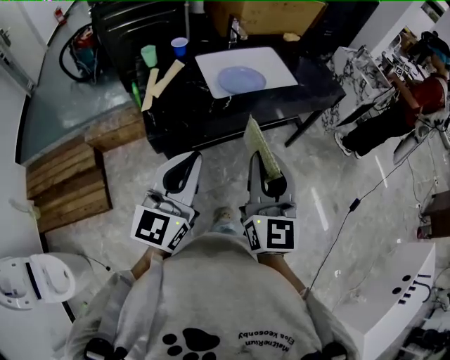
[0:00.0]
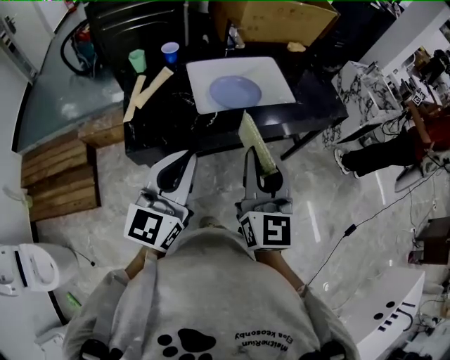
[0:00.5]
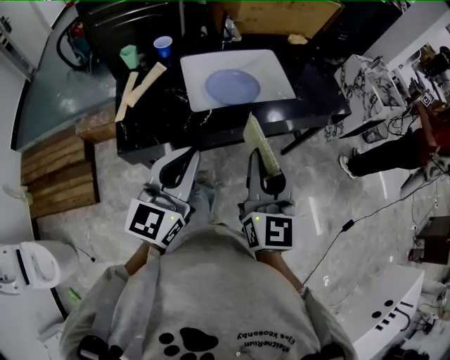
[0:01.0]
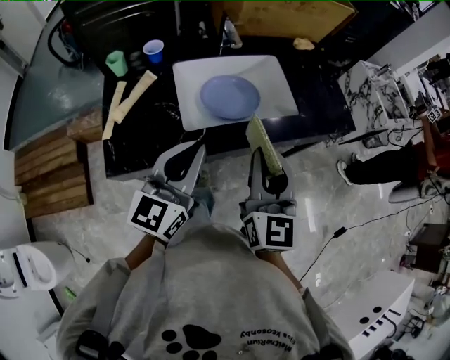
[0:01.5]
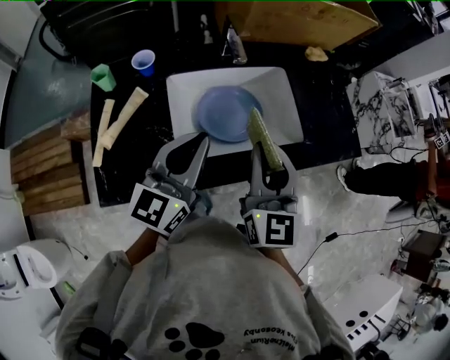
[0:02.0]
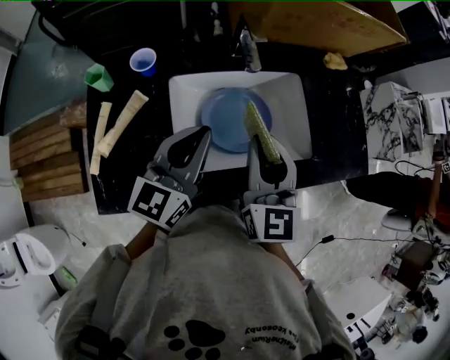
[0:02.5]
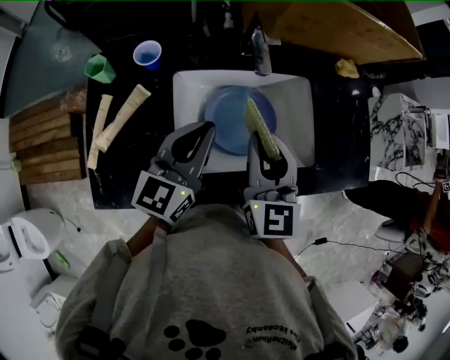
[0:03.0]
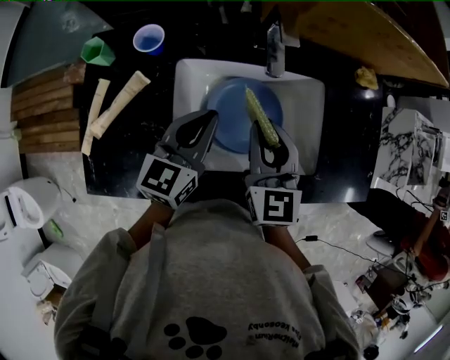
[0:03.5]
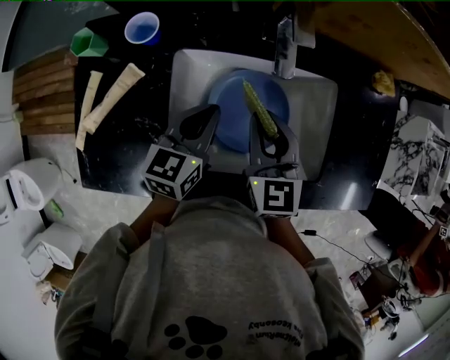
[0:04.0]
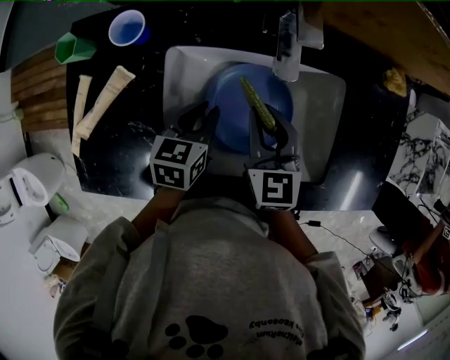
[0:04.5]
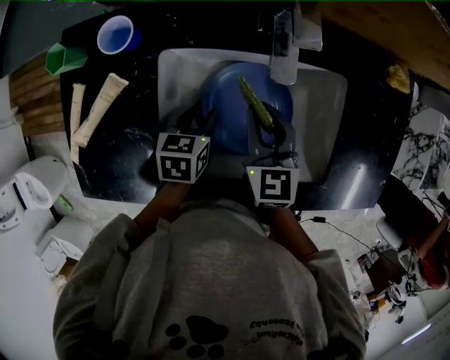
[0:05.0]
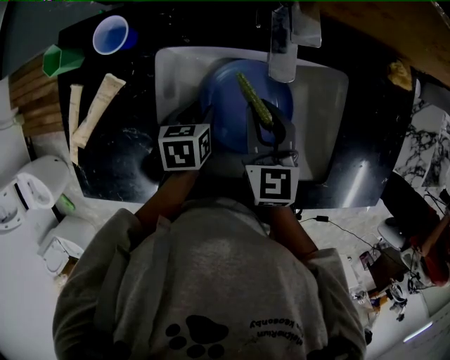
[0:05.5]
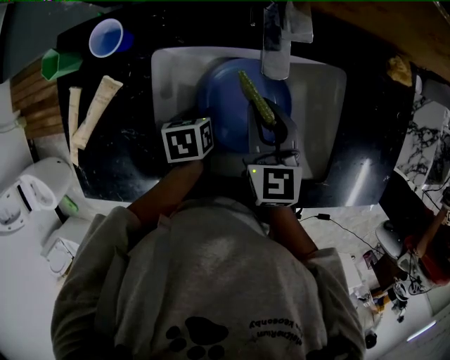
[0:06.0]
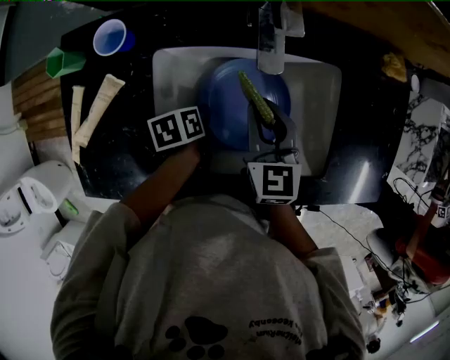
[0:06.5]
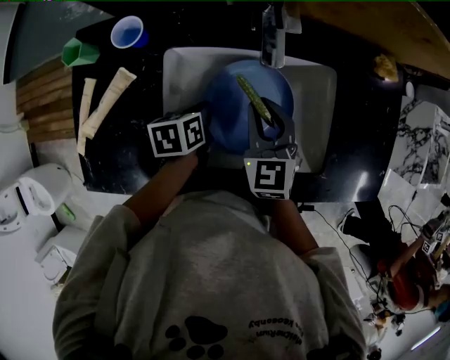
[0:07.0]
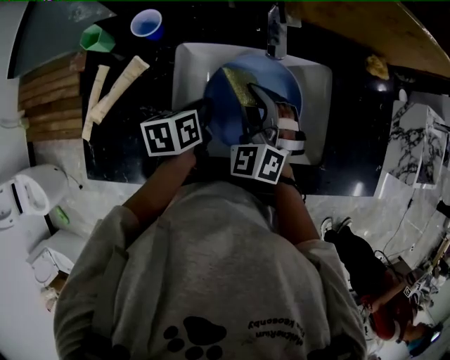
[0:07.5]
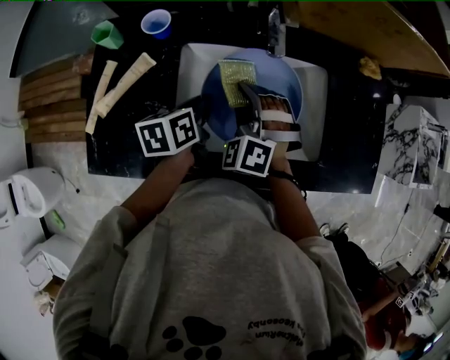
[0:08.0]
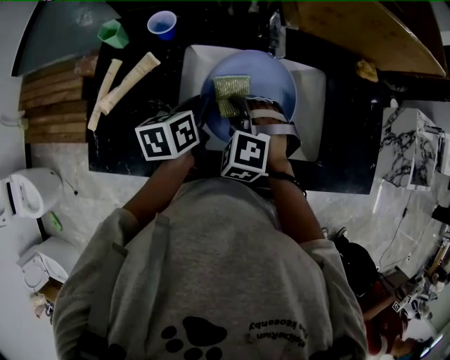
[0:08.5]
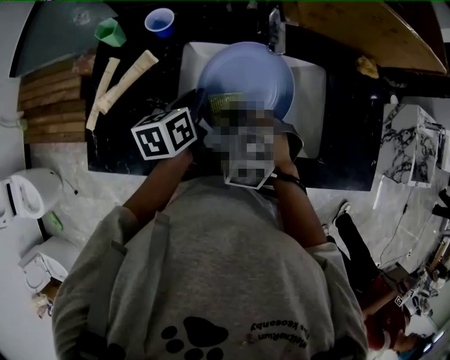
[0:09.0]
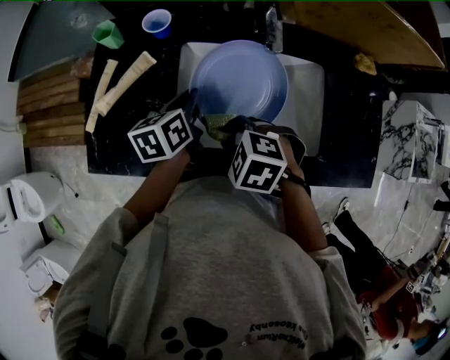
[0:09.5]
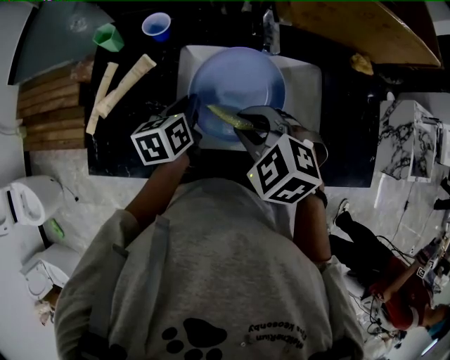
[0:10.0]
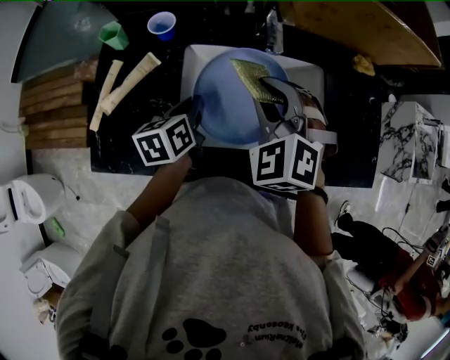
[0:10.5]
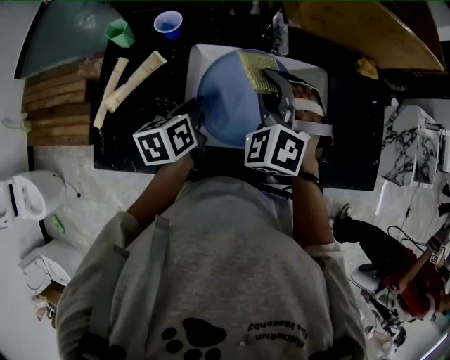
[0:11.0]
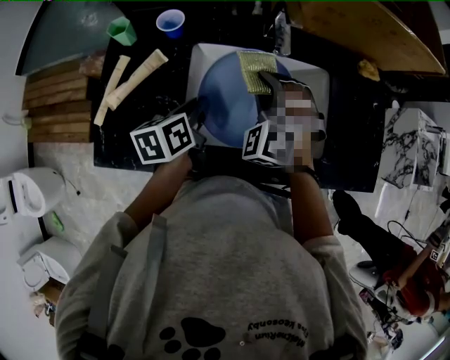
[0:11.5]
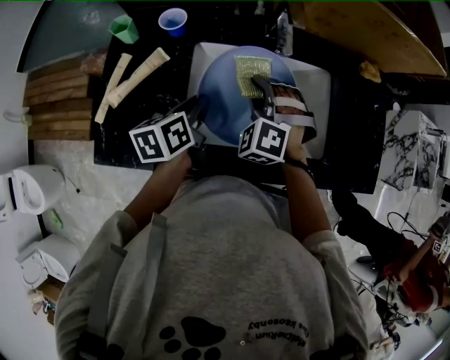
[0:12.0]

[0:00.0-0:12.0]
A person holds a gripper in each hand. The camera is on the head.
0:00.0 to 0:02.0: The two grippers go some 40 cm forward.
0:02.0 to 0:04.0: The right gripper shifts about 20 cm forward and downward, and swivels about 30 degrees. The left gripper travels downward and forward by approximately 25 cm, and turns by about 30 degrees.
0:04.0 to 0:06.0: The right gripper moves downward, some 5 cm. Meanwhile the left gripper is displaced downward by roughly 15 cm, tilts its fingers approximately 40 degrees downward, and opens up.
0:06.0 to 0:08.0: The right gripper shifts roughly 10 cm to the left and backward, and rolls counterclockwise, seen from behind, by about 70 degrees; the left gripper moves upward, about 15 cm, rotates roughly 30 degrees, and closes up.
0:08.0 to 0:10.0: The right gripper moves some 10 cm, and changes its angle by approximately 40 degrees.
0:10.0 to 0:12.0: The right gripper heads forward and downward, covering about 10 cm, and turns by roughly 40 degrees.

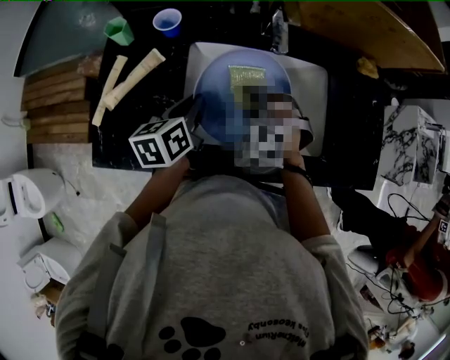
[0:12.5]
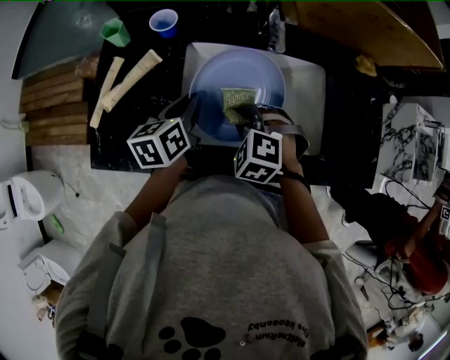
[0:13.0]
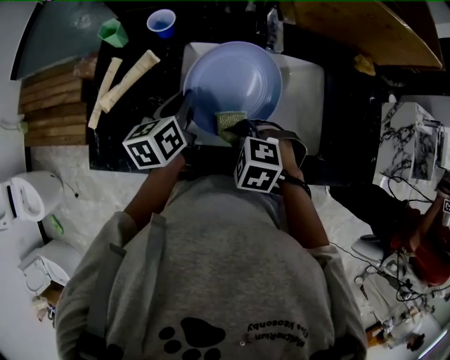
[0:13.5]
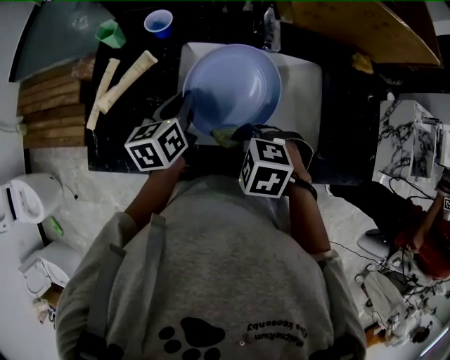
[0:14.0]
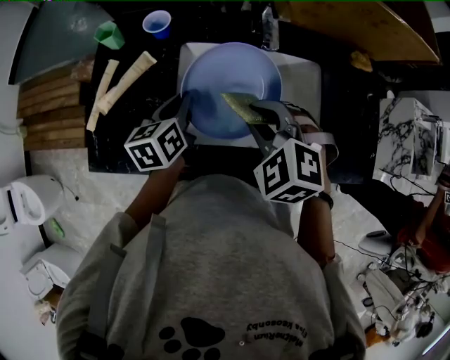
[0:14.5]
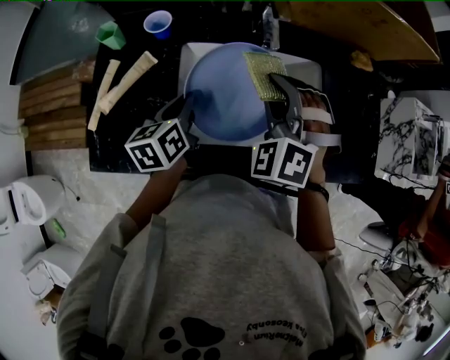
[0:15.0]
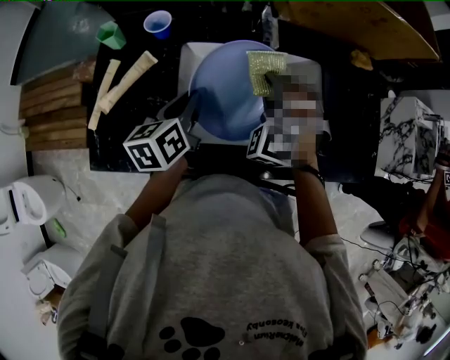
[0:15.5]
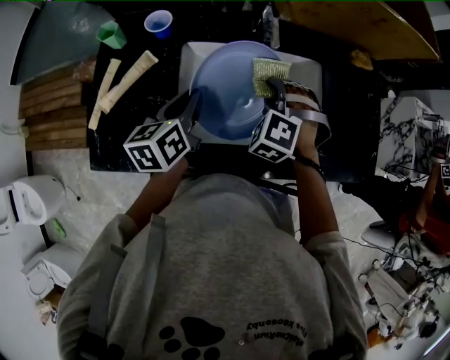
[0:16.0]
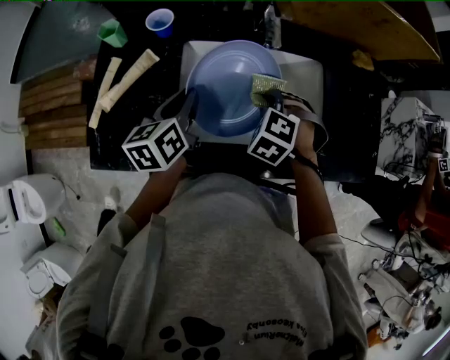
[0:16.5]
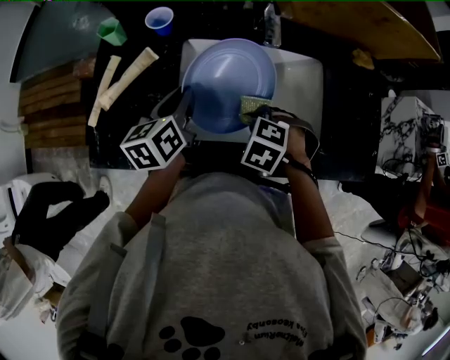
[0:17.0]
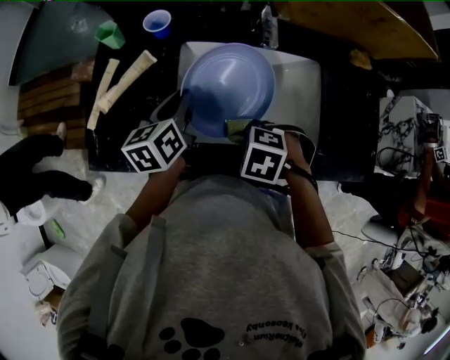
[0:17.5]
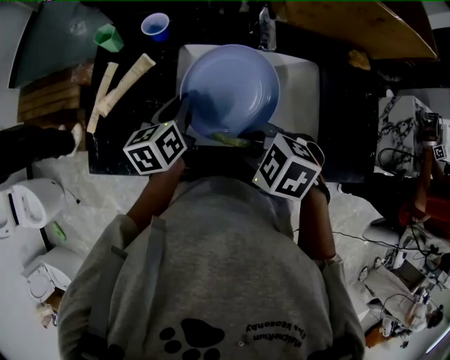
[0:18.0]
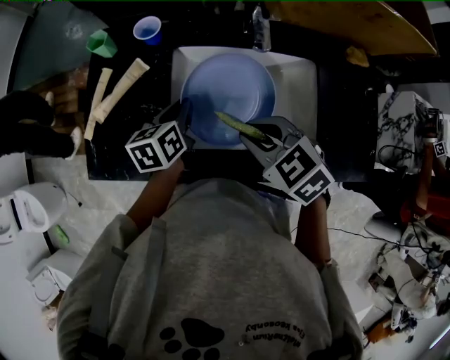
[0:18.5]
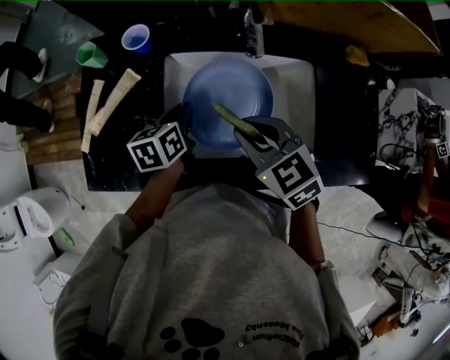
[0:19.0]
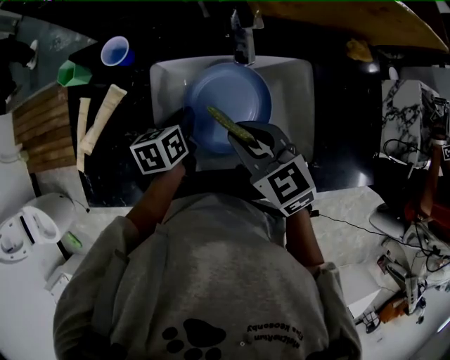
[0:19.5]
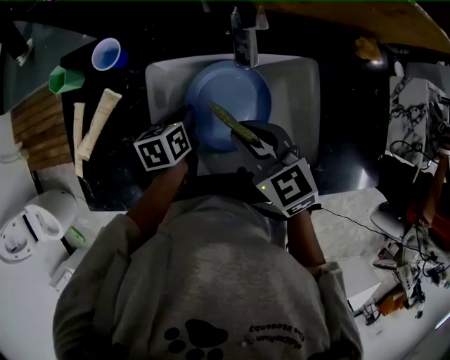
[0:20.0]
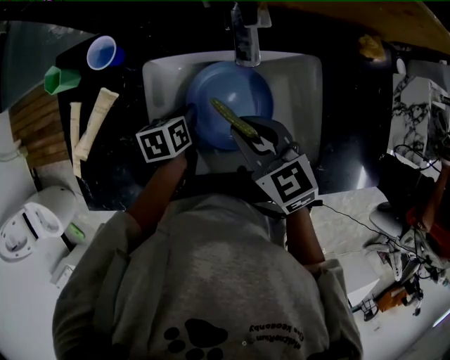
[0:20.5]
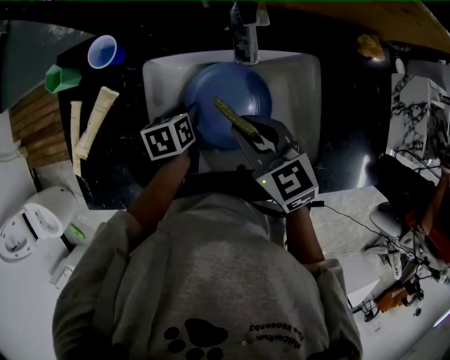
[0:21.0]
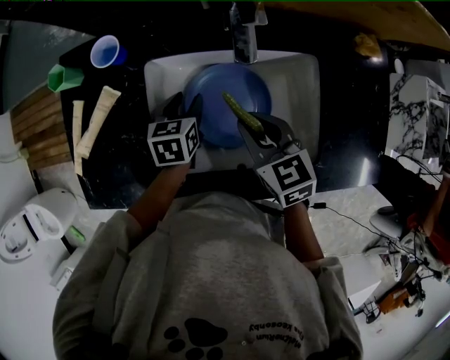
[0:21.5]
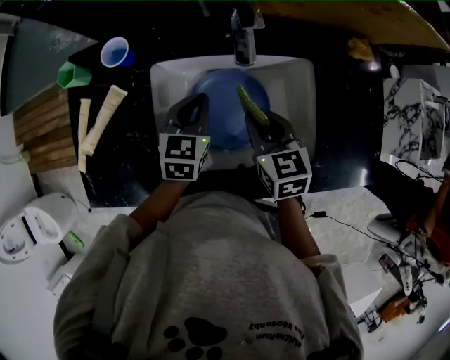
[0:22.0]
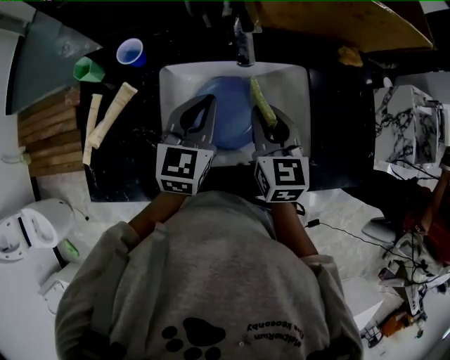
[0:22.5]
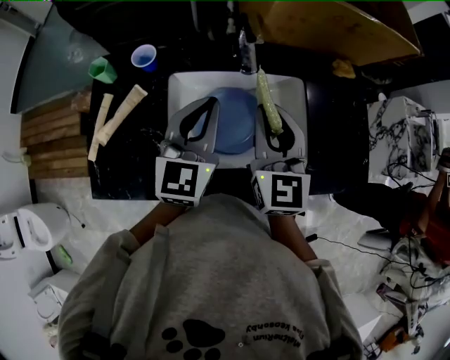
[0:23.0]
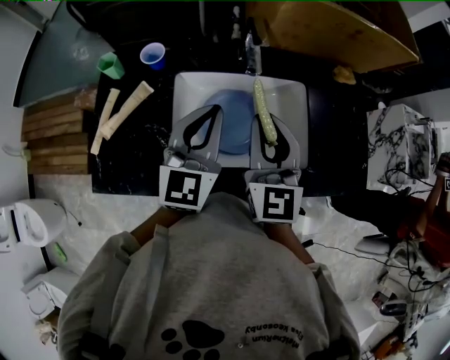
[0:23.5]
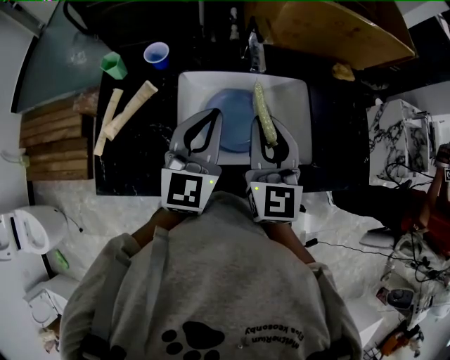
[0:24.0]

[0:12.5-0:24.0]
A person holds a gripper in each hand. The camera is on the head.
0:12.5 to 0:14.5: The right gripper shifts about 10 cm upward.
0:14.5 to 0:16.5: The right gripper moves downward, some 10 cm, and swivels approximately 20 degrees.
0:16.5 to 0:18.5: The right gripper is displaced upward by some 10 cm, and changes its angle by roughly 40 degrees.
0:18.5 to 0:20.0: The left gripper moves downward and to the right, roughly 10 cm; the right gripper is displaced forward by about 5 cm, and changes its angle by approximately 20 degrees.
0:20.0 to 0:22.0: The right gripper moves approximately 5 cm, and swivels approximately 20 degrees; the left gripper goes approximately 10 cm upward, swivels approximately 40 degrees, and opens, then closes once more.
0:22.0 to 0:24.0: The right gripper shifts about 15 cm upward, and angles its fingers upward, by approximately 30 degrees. The left gripper is displaced upward and backward by some 20 cm, and turns by approximately 30 degrees.

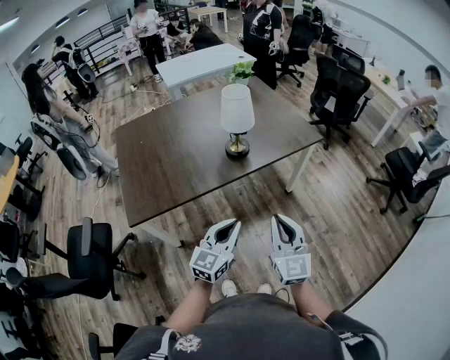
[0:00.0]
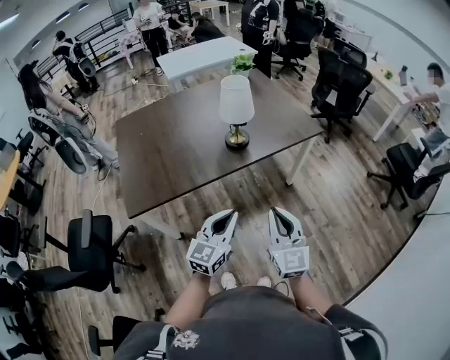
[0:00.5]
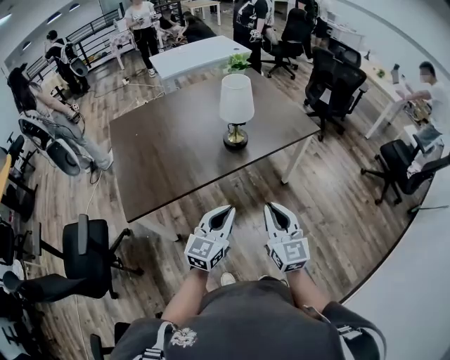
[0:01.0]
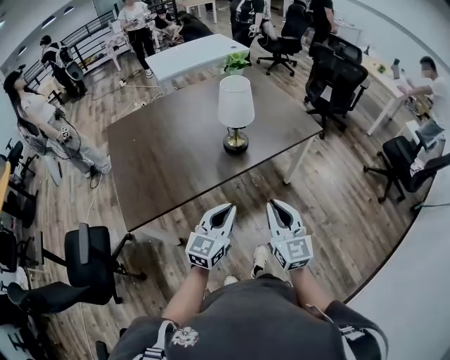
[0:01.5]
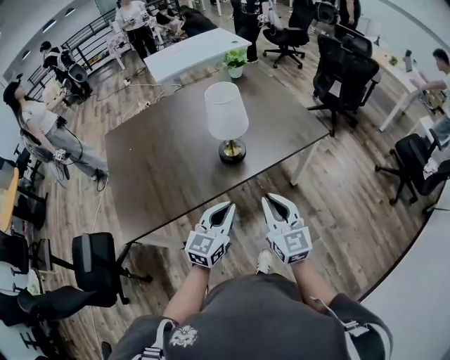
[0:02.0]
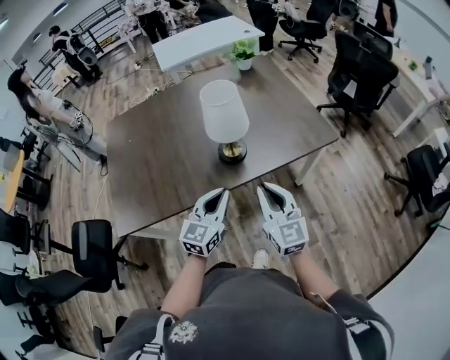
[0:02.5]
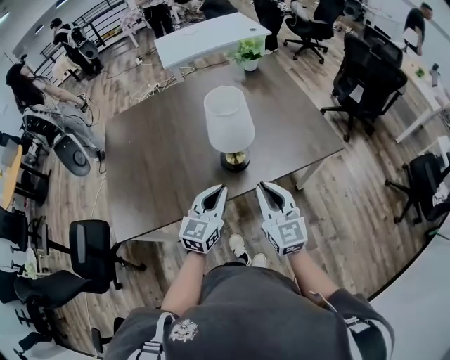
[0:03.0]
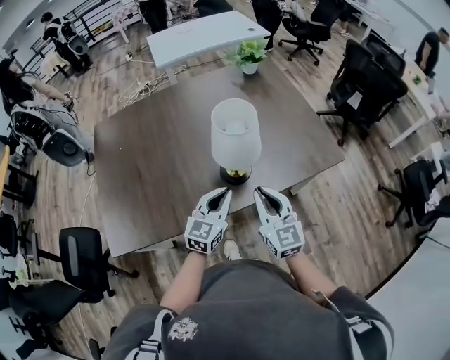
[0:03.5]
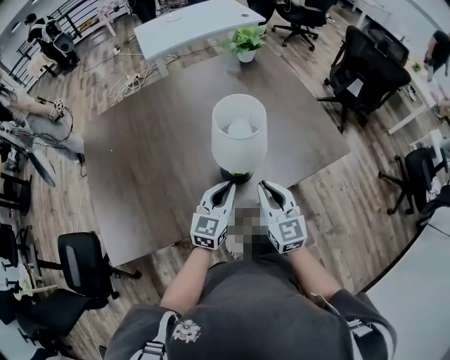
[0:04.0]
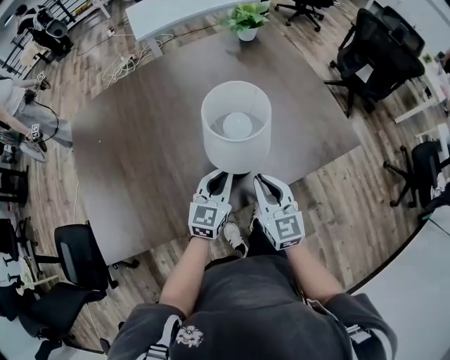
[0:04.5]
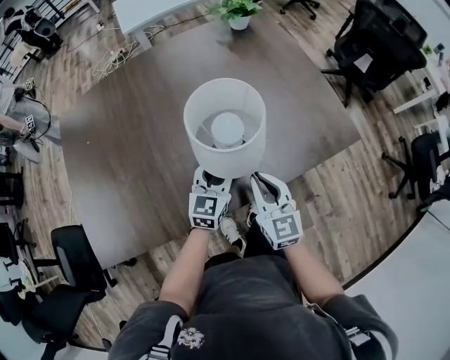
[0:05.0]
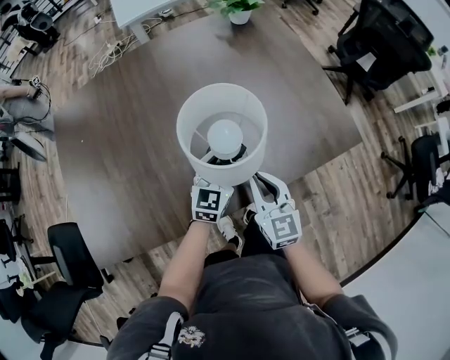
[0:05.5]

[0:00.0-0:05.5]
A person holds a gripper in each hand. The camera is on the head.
0:00.0 to 0:02.0: Both grippers travel together forward, roughly 15 cm.
0:02.0 to 0:03.5: Both grippers travel together forward, about 20 cm.
0:03.5 to 0:05.5: The left gripper heads forward and downward, covering some 20 cm, and opens its fingers; the right gripper moves downward and forward, approximately 15 cm.
